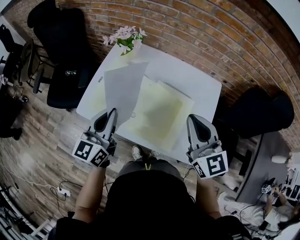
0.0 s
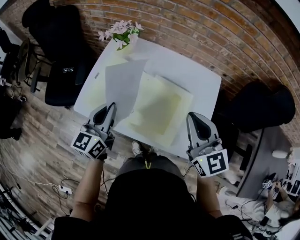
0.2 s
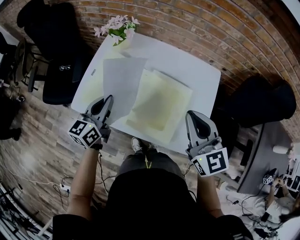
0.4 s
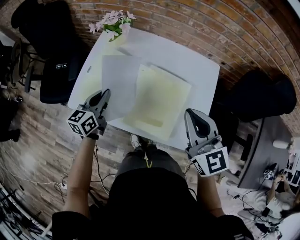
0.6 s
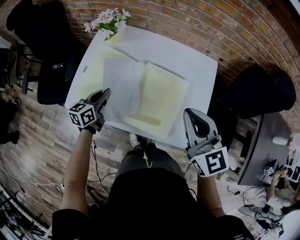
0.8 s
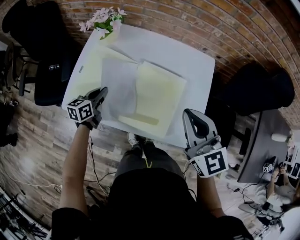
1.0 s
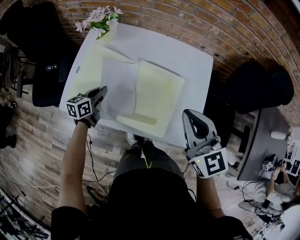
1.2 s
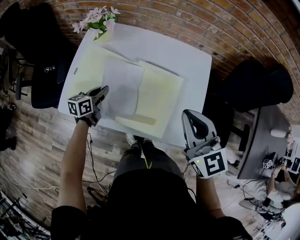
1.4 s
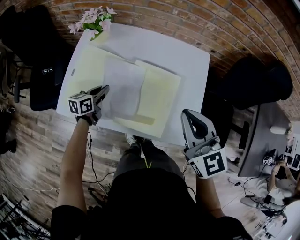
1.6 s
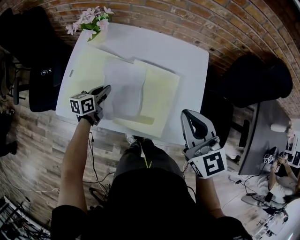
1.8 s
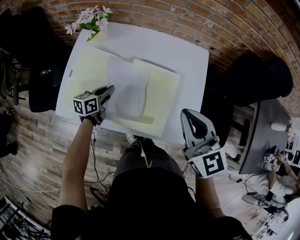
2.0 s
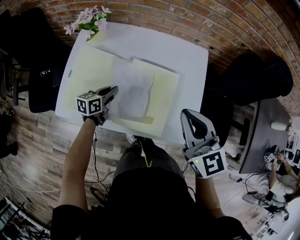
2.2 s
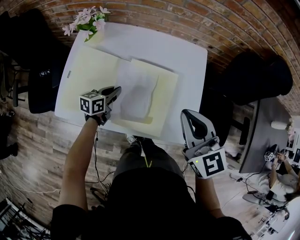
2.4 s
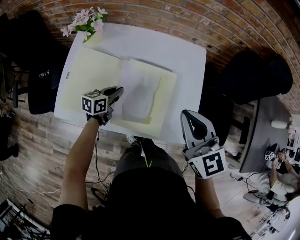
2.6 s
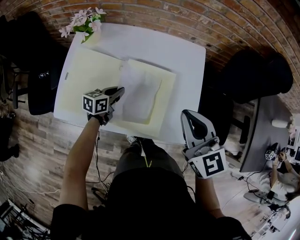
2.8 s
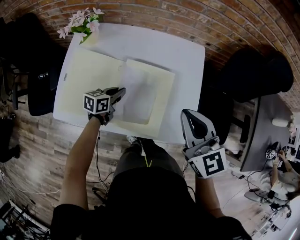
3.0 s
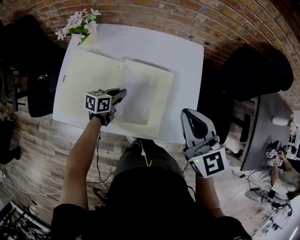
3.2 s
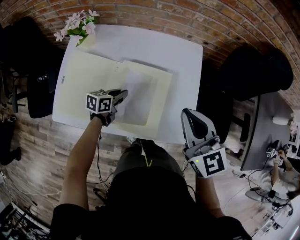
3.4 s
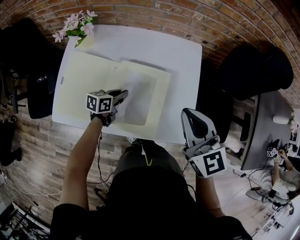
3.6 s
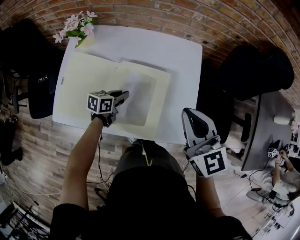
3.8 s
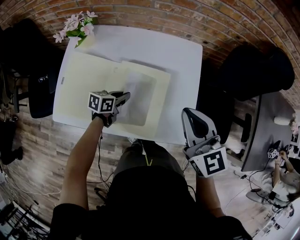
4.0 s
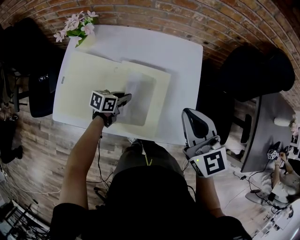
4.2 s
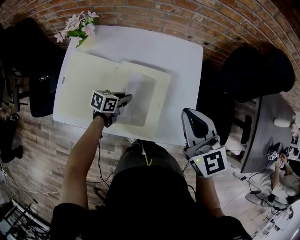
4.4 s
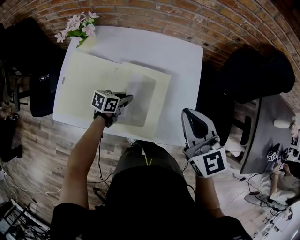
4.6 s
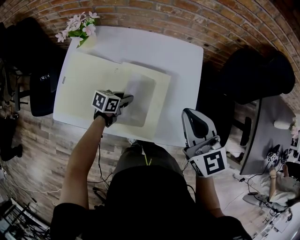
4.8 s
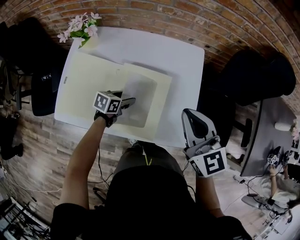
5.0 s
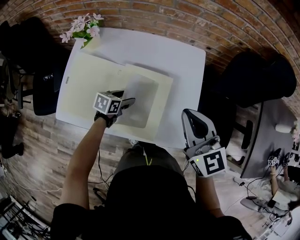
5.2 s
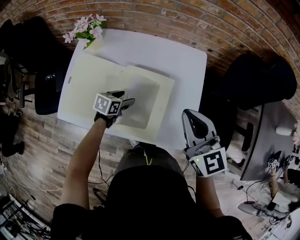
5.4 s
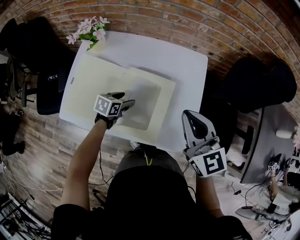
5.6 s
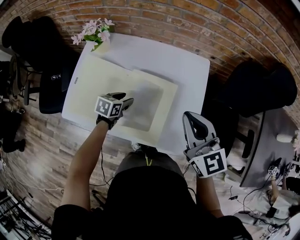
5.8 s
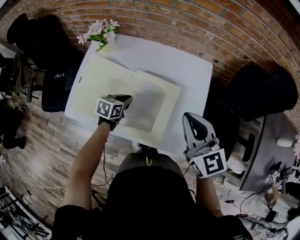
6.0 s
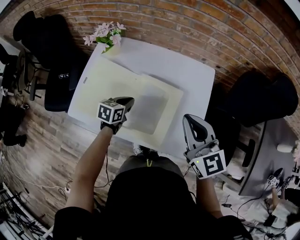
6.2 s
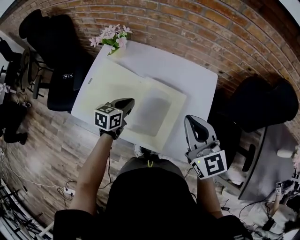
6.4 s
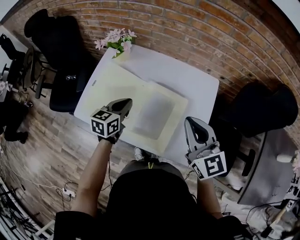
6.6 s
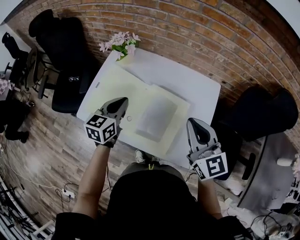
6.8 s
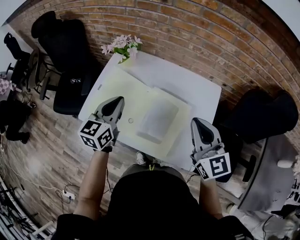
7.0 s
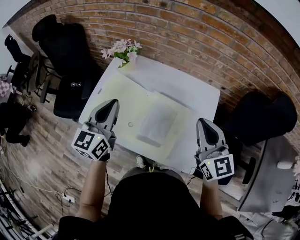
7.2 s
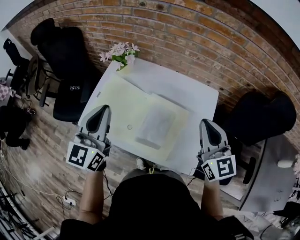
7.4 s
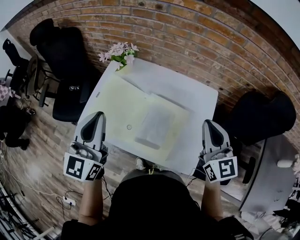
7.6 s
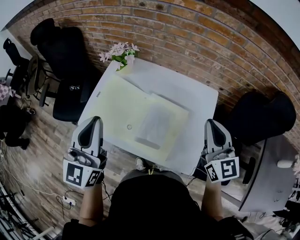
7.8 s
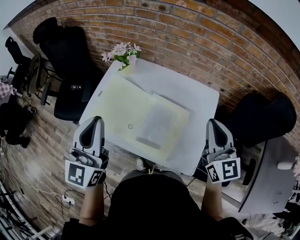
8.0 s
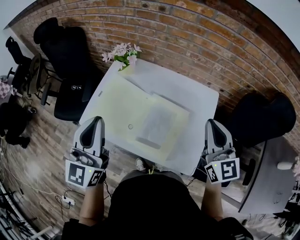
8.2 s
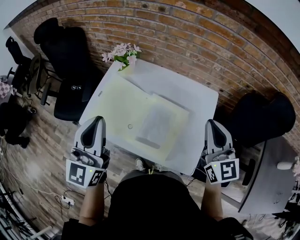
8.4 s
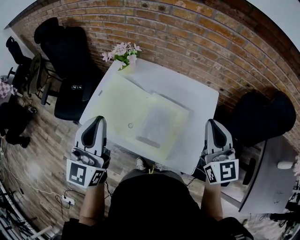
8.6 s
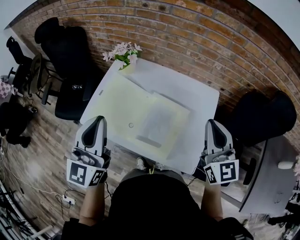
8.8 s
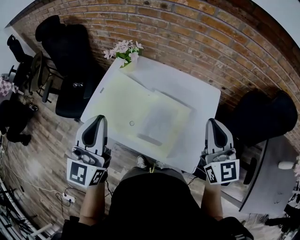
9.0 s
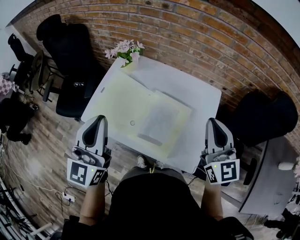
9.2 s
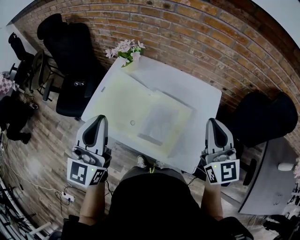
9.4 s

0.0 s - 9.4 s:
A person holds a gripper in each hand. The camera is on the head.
0.0 s - 1.6 s: The right gripper shifts by approximately 5 cm; the left gripper is displaced downward and forward by approximately 25 cm, and changes its angle by some 40 degrees.
1.6 s - 3.2 s: The left gripper moves to the right, some 15 cm.
3.2 s - 4.8 s: The grippers move only a little.
4.8 s - 6.2 s: The left gripper shifts some 10 cm upward and to the left, changes its angle by approximately 20 degrees, and opens, then closes again.
6.2 s - 7.8 s: The right gripper shifts about 5 cm upward, while the left gripper goes approximately 35 cm upward, and angles its fingers upward, by approximately 50 degrees.
7.8 s - 9.4 s: The grippers move only a little.

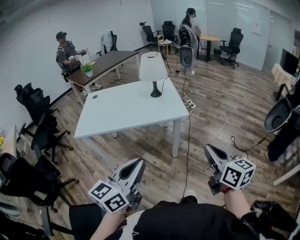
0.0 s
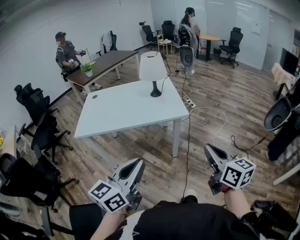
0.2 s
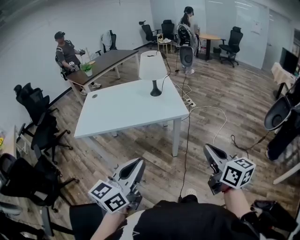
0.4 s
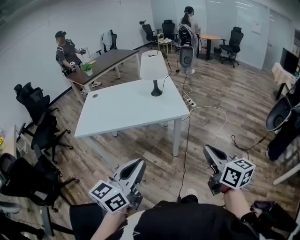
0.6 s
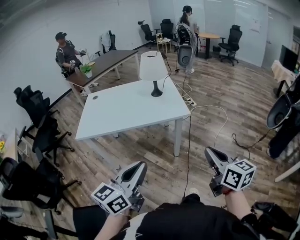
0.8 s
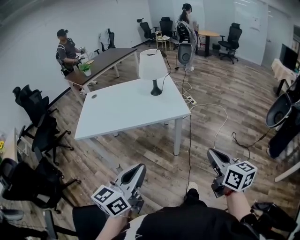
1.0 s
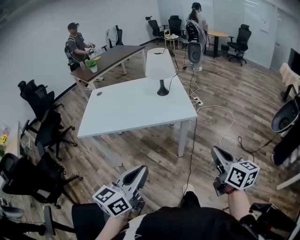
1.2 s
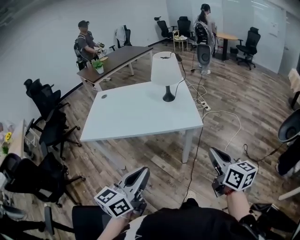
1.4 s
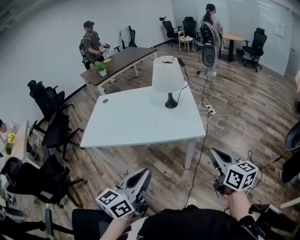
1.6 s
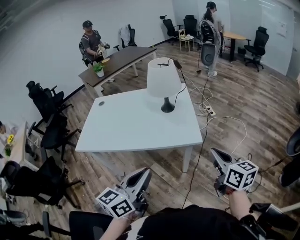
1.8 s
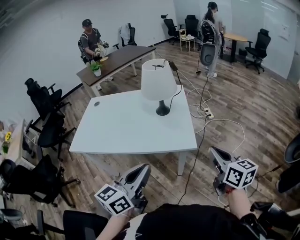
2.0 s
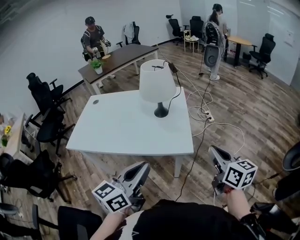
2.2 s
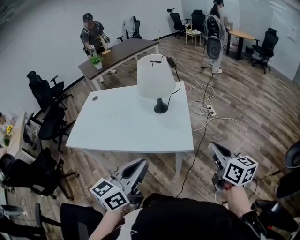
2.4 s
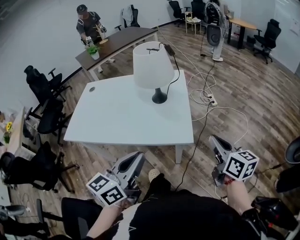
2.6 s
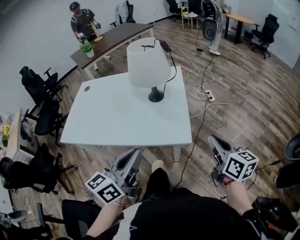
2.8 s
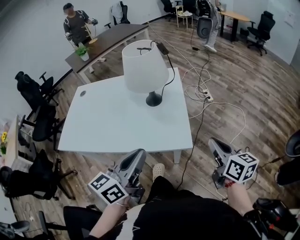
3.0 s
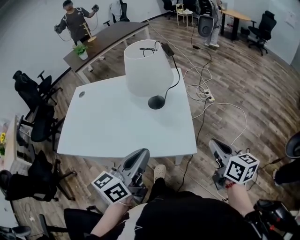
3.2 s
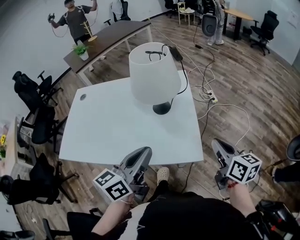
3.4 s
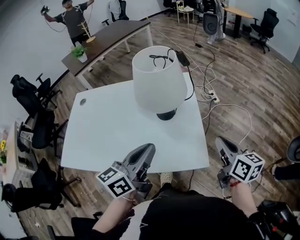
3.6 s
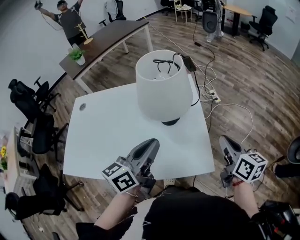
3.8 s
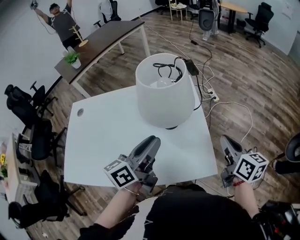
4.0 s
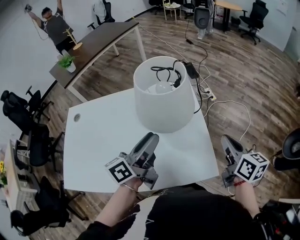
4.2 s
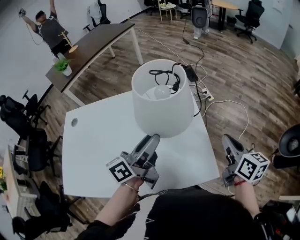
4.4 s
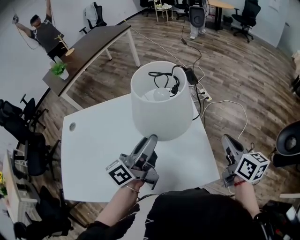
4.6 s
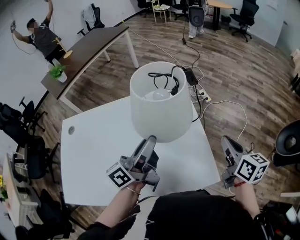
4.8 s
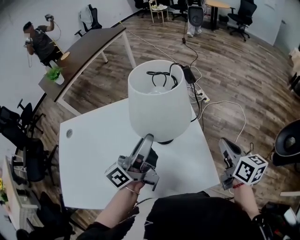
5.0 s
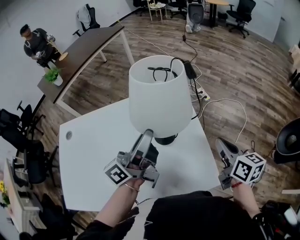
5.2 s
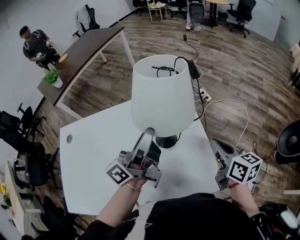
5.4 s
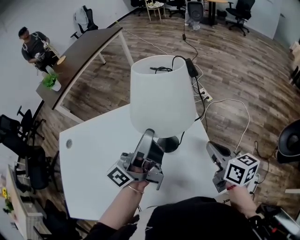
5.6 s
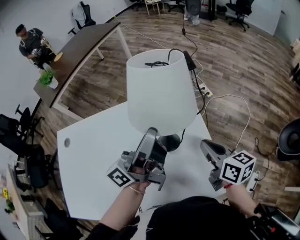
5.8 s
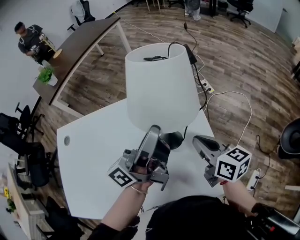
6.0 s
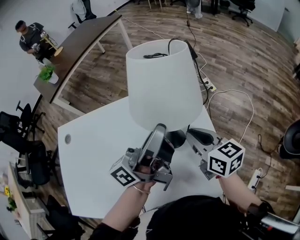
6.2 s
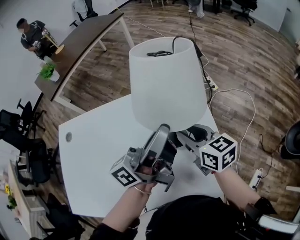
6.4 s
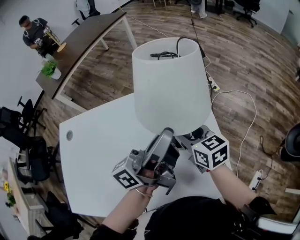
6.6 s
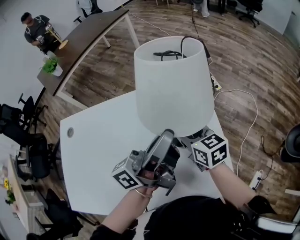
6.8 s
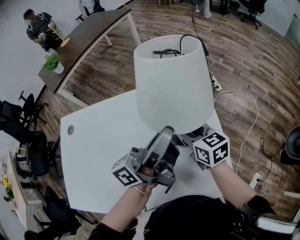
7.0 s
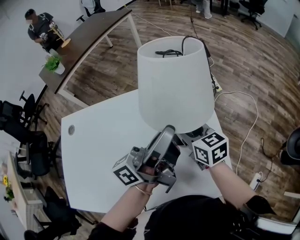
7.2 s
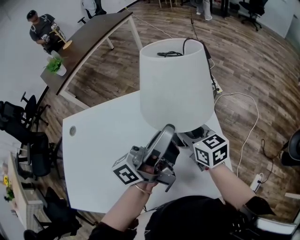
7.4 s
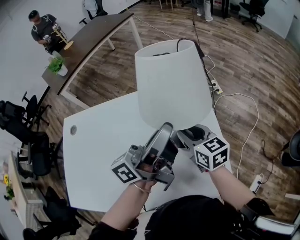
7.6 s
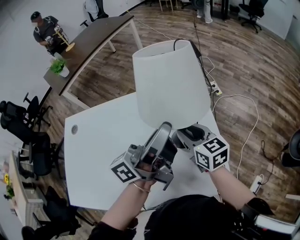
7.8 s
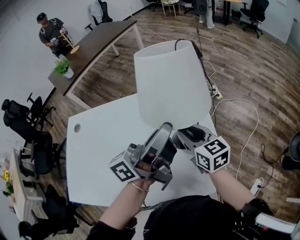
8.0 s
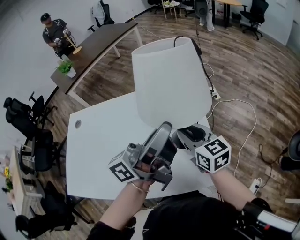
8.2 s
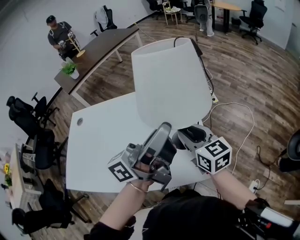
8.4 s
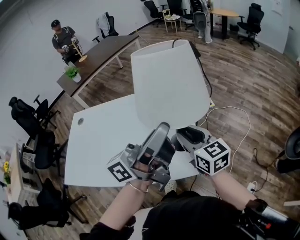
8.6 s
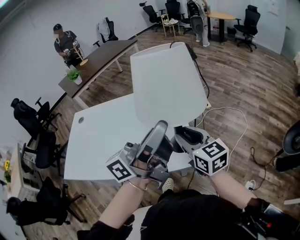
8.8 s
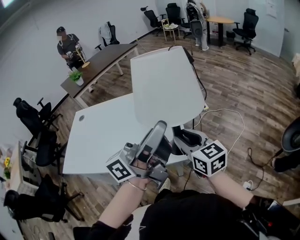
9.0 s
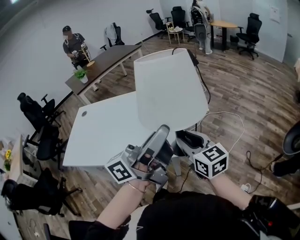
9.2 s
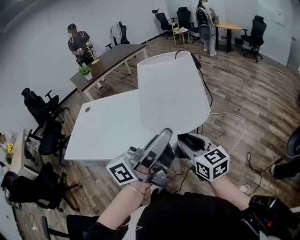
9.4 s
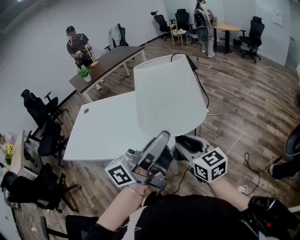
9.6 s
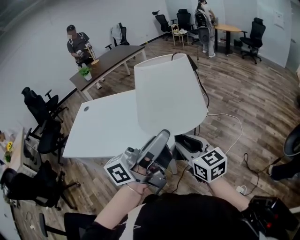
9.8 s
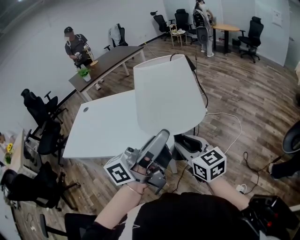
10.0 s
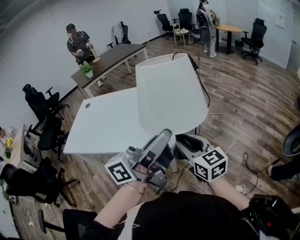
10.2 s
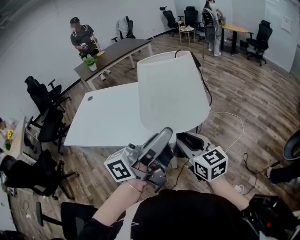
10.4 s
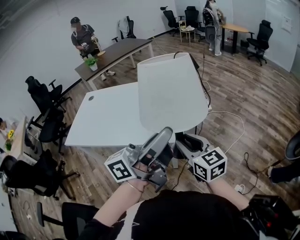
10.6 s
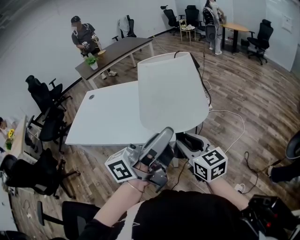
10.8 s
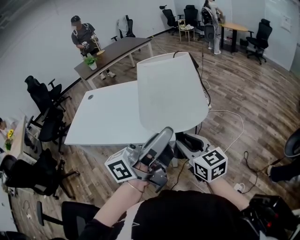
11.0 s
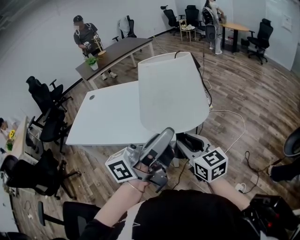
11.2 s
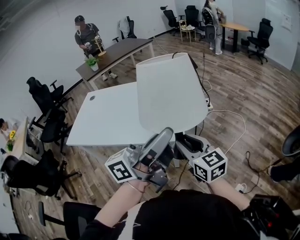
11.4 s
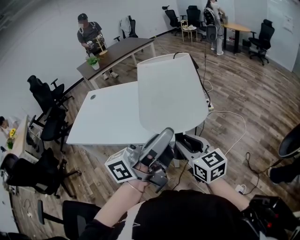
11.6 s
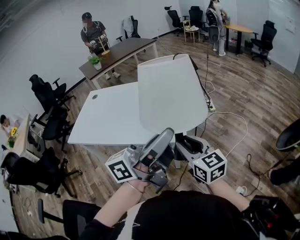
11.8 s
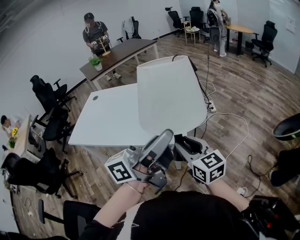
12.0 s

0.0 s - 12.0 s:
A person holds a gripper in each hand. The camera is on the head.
0.0 s - 1.6 s: Both grippers travel together forward, some 15 cm.
1.6 s - 3.0 s: Both grippers move forward and to the right, approximately 25 cm.
3.0 s - 4.4 s: The left gripper moves forward, roughly 25 cm, rotates roughly 30 degrees, and opens, while the right gripper travels forward and to the left by some 20 cm.
4.4 s - 6.0 s: The right gripper shifts some 15 cm to the left and forward. The left gripper moves forward, approximately 10 cm, turns by about 20 degrees, and closes its fingers.
6.0 s - 7.6 s: The right gripper moves to the left, some 5 cm, and opens.
7.6 s - 9.0 s: The grippers both shift backward, to the right and upward by approximately 35 cm.
9.0 s - 10.4 s: Both grippers move backward and to the right, about 15 cm.
10.4 s - 12.0 s: The grippers move only a little.

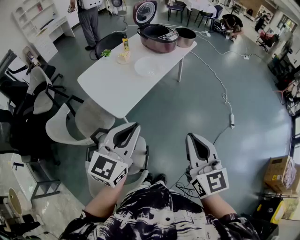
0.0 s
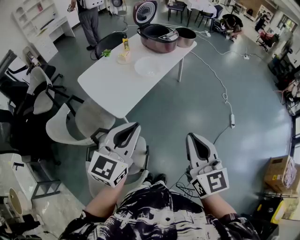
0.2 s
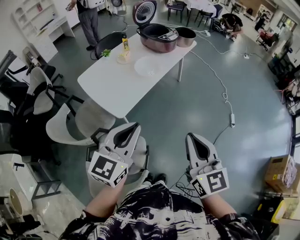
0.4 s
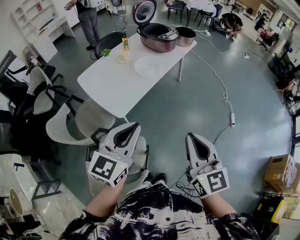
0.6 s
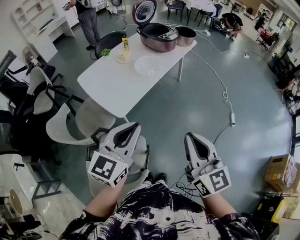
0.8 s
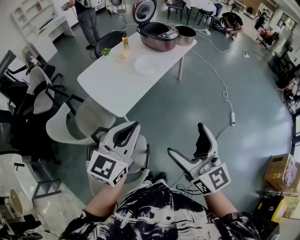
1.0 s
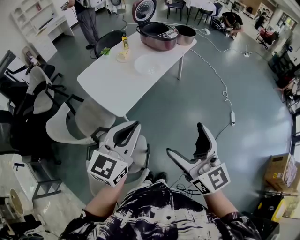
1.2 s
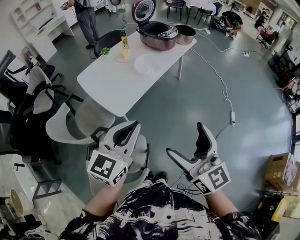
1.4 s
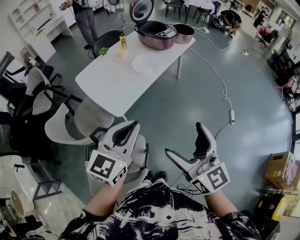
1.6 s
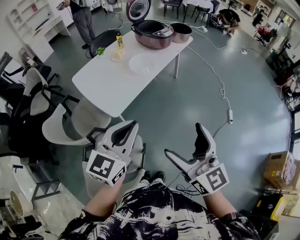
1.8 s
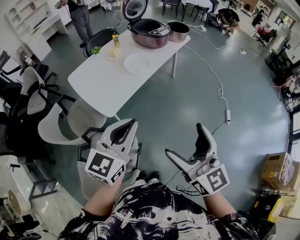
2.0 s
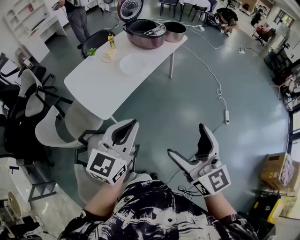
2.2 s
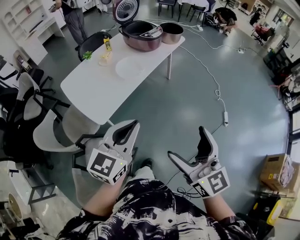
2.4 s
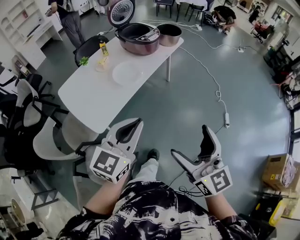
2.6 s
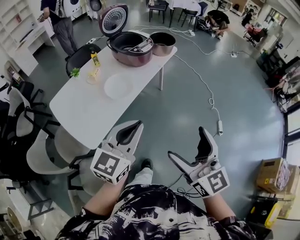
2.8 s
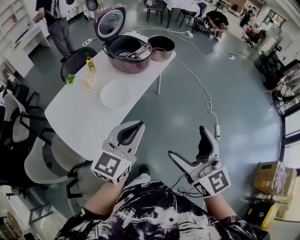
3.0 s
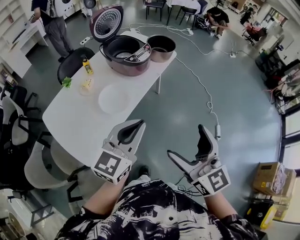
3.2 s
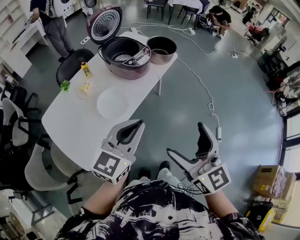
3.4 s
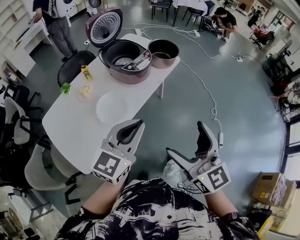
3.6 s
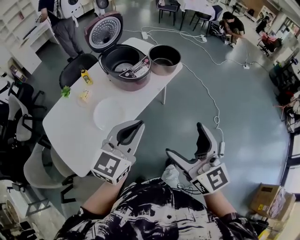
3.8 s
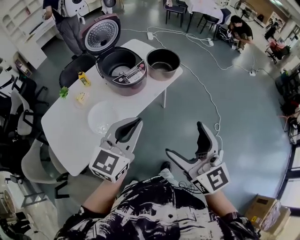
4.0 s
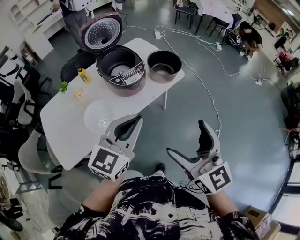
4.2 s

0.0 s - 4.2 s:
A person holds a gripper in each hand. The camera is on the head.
0.0 s - 1.4 s: The right gripper opens.
1.4 s - 2.8 s: The grippers both shift forward and to the right by about 25 cm.
2.8 s - 4.2 s: Both grippers travel together forward and to the right, approximately 40 cm.
